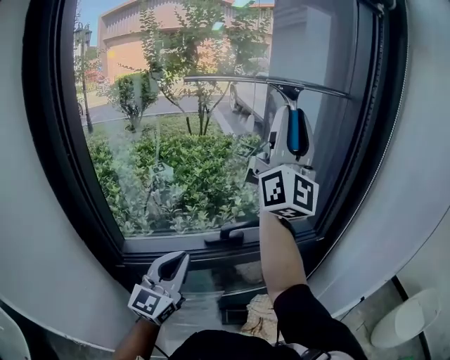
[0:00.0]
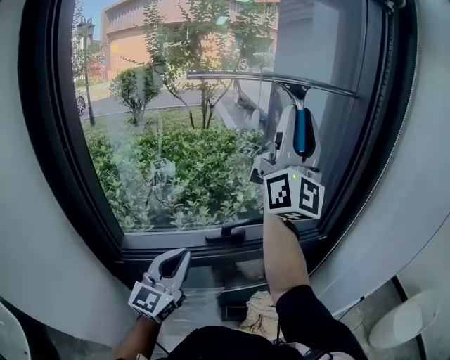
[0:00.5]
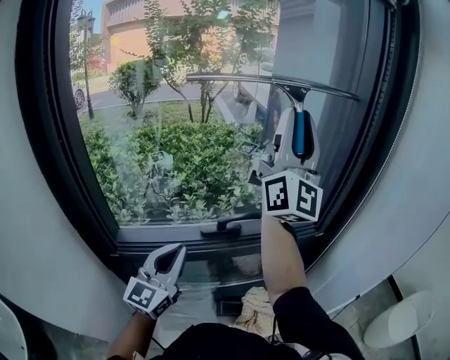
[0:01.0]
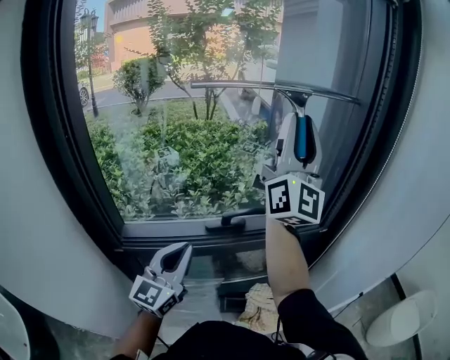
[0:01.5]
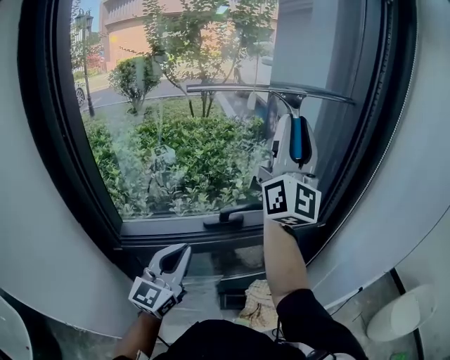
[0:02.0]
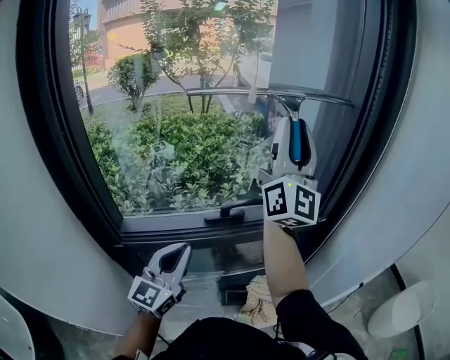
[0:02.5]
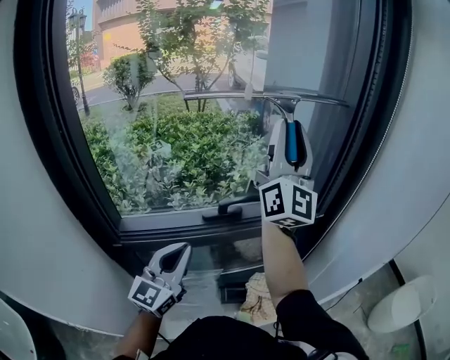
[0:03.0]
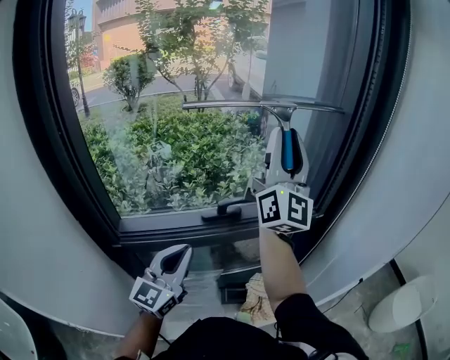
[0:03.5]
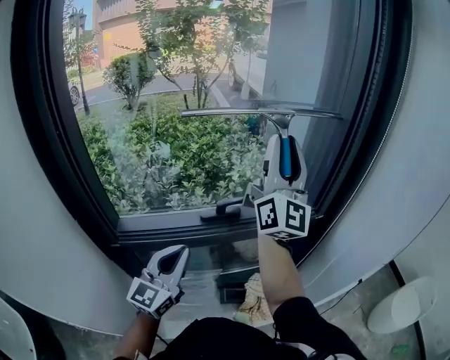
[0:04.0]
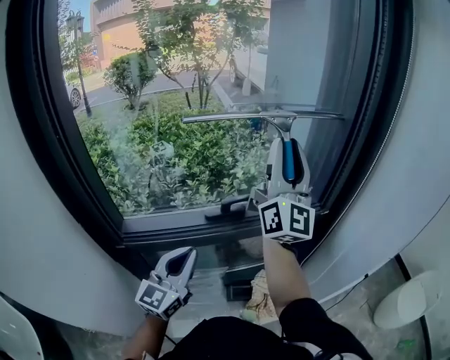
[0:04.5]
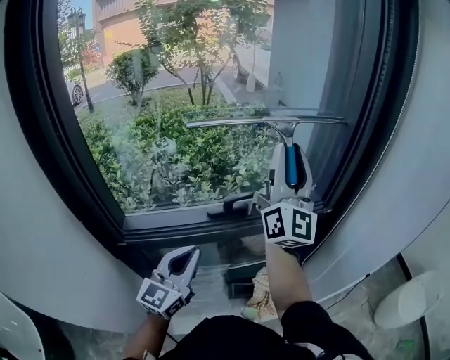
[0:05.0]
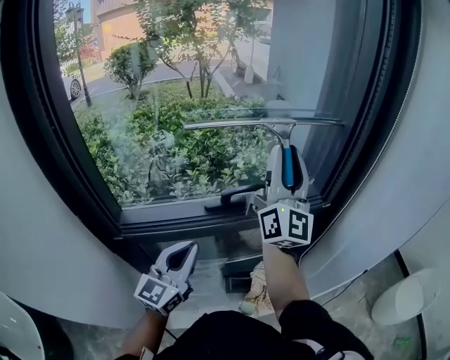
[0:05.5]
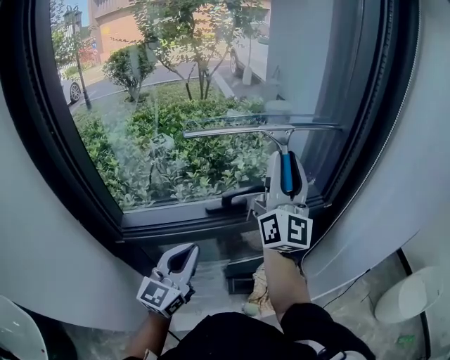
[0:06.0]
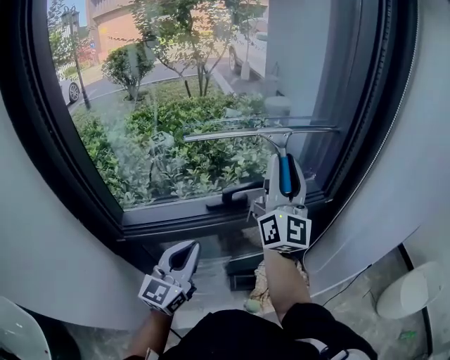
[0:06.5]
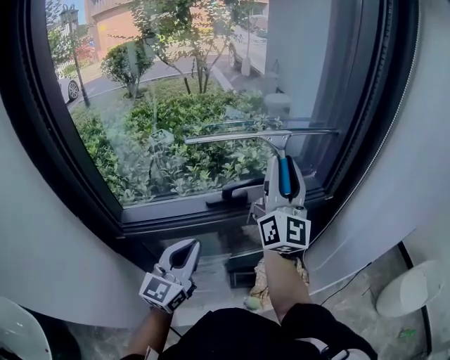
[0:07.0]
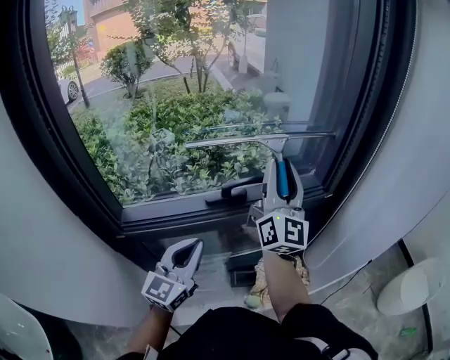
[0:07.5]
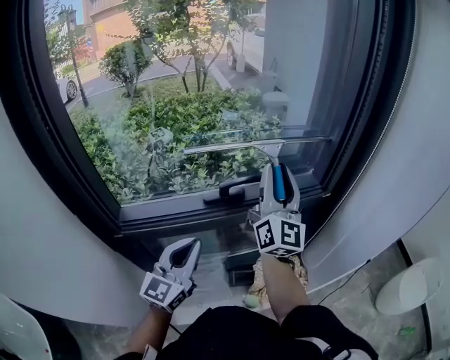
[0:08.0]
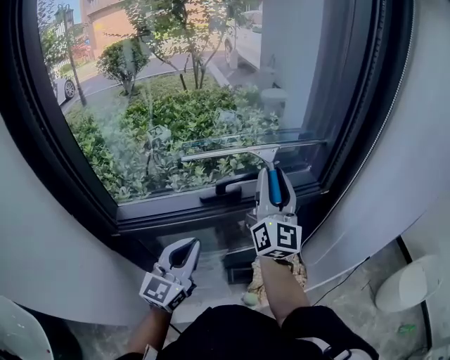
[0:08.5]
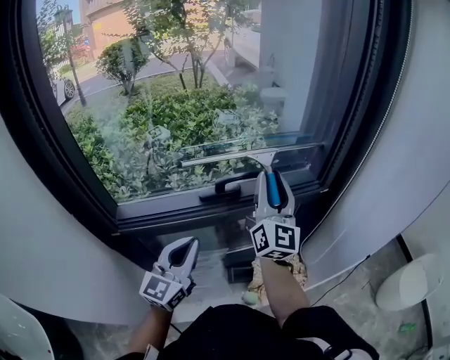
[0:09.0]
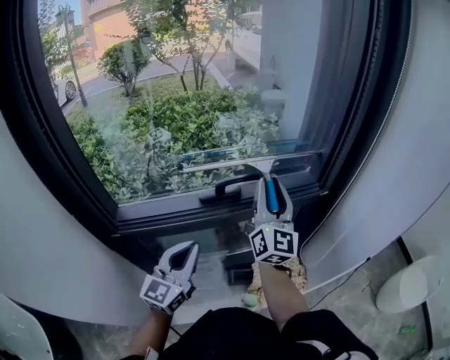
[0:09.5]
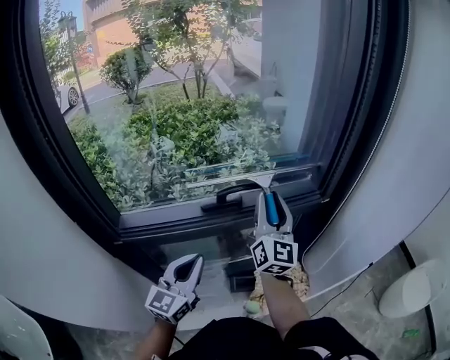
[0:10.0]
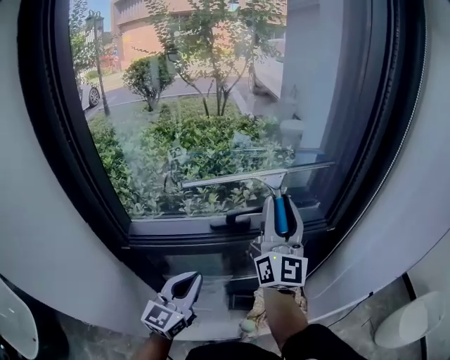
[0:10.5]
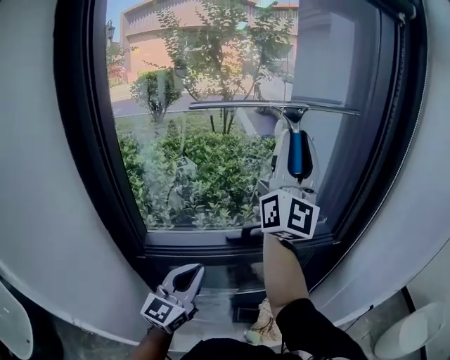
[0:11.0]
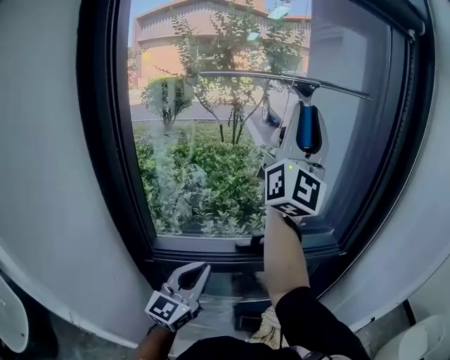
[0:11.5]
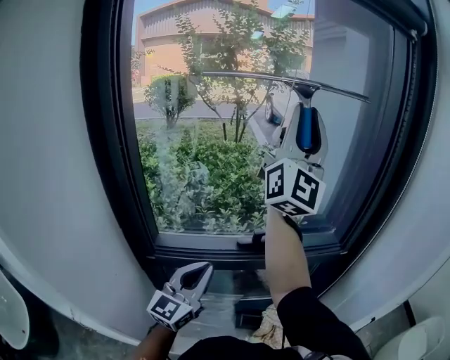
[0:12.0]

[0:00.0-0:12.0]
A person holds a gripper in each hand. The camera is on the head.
0:00.0 to 0:02.0: The right gripper travels downward by roughly 5 cm.
0:02.0 to 0:04.0: The right gripper goes about 5 cm downward.
0:04.0 to 0:06.0: The right gripper is displaced downward by about 5 cm.
0:06.0 to 0:08.0: The right gripper moves downward, roughly 5 cm.
0:08.0 to 0:10.0: The right gripper travels downward by some 10 cm.
0:10.0 to 0:12.0: The right gripper travels upward by approximately 35 cm, and tips its fingers upward by about 40 degrees, while the left gripper shifts approximately 10 cm upward and to the left.

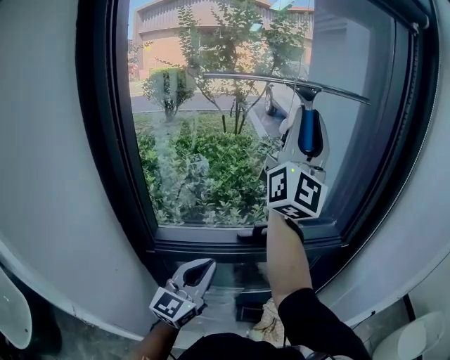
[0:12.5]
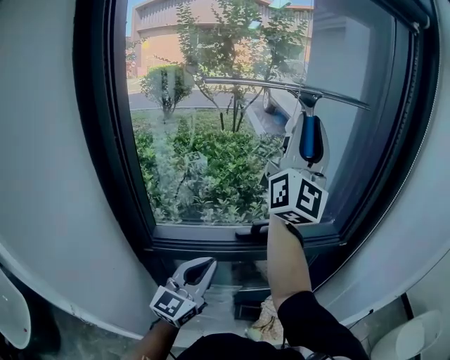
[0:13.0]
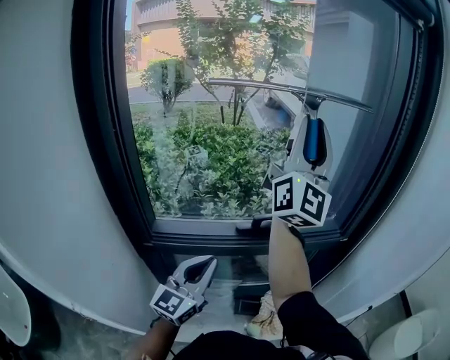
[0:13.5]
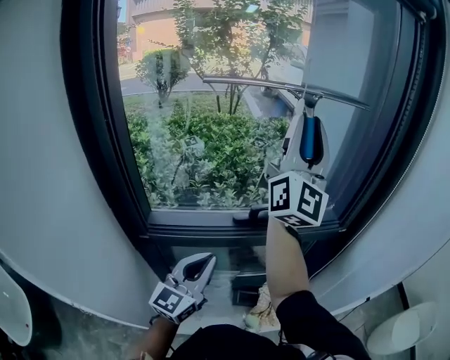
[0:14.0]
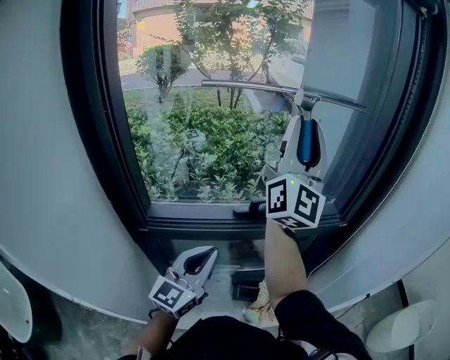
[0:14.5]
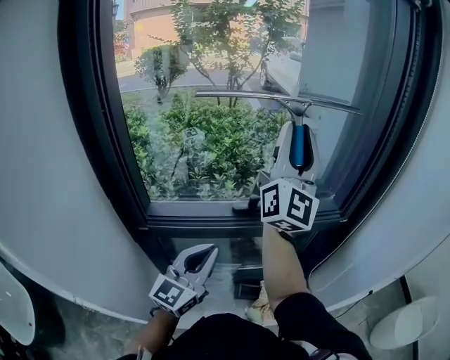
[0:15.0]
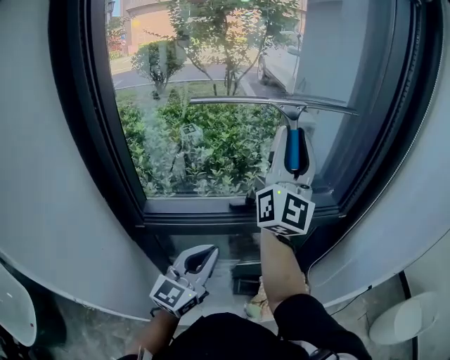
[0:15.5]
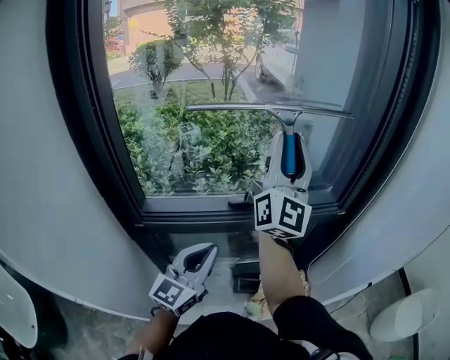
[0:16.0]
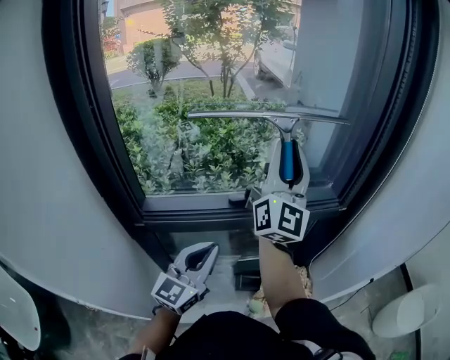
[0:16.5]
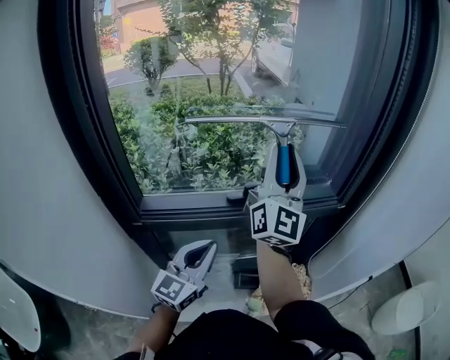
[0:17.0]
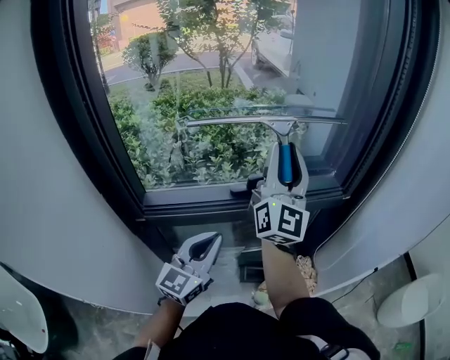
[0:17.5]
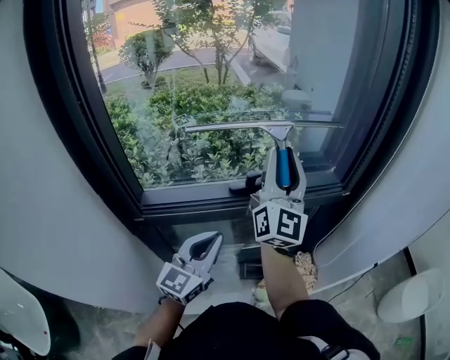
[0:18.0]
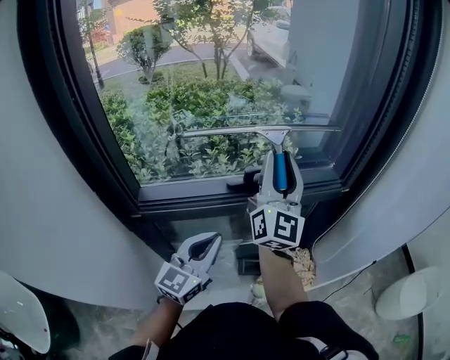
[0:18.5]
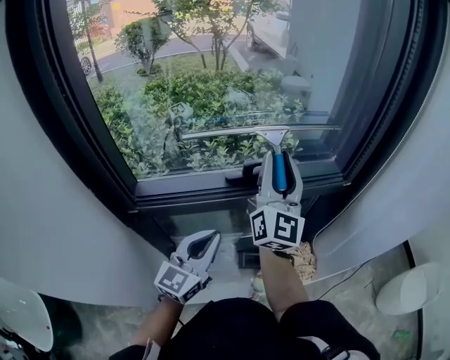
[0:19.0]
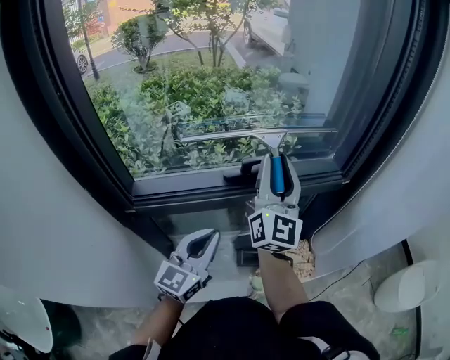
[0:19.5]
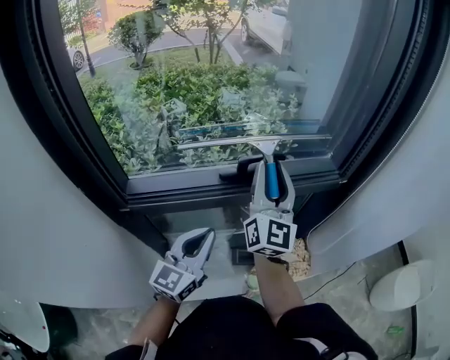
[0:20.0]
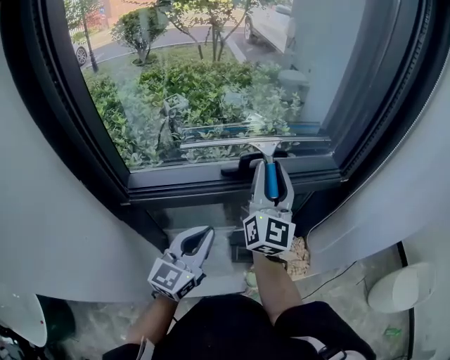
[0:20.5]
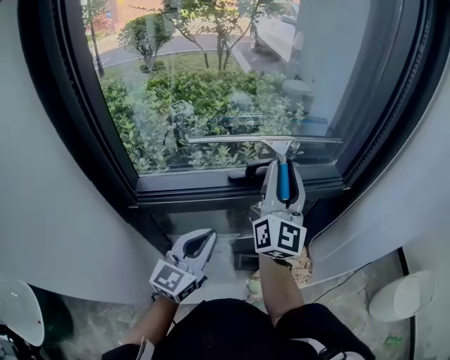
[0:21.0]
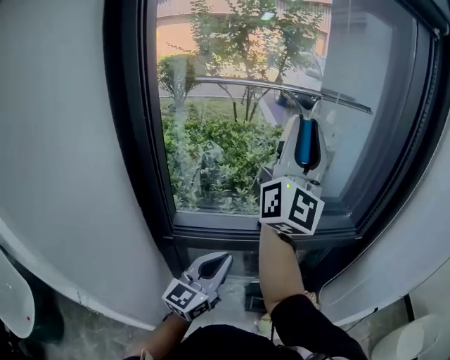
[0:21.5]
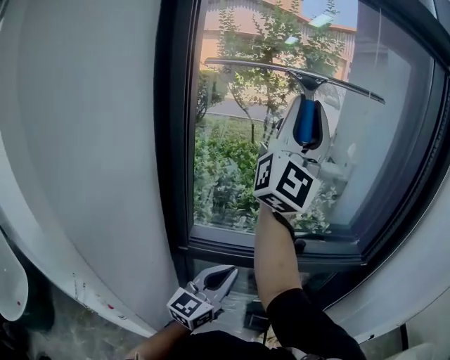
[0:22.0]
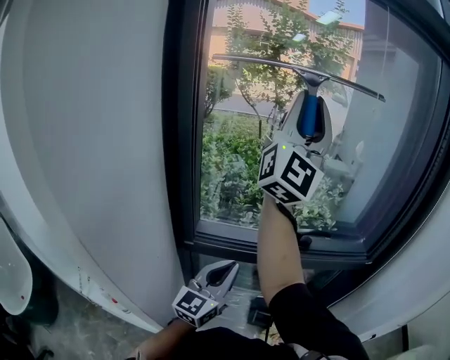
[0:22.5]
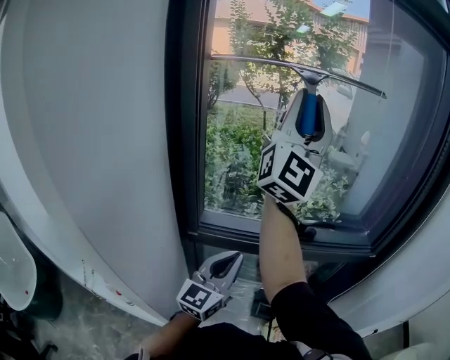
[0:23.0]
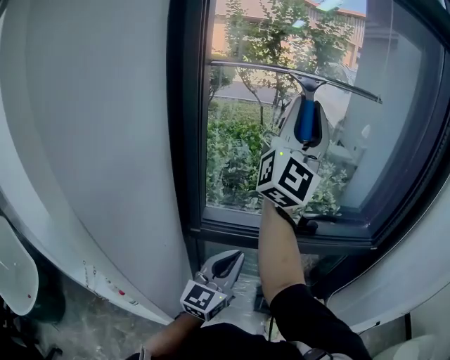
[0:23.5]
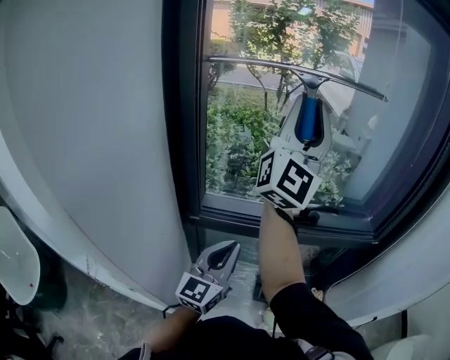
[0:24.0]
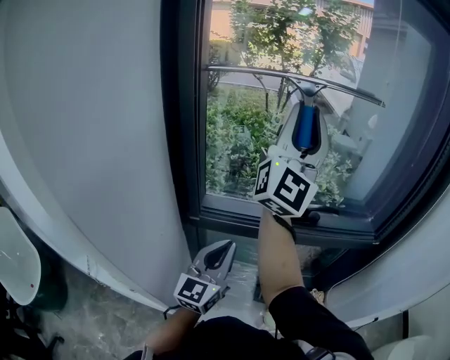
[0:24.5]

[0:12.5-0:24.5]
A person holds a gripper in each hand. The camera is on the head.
0:12.5 to 0:14.5: The right gripper is displaced downward by approximately 10 cm.
0:14.5 to 0:16.5: The right gripper shifts roughly 10 cm downward.
0:16.5 to 0:18.5: The right gripper shifts about 10 cm downward.
0:18.5 to 0:20.5: The right gripper travels downward by about 10 cm.
0:20.5 to 0:22.5: The right gripper shifts roughly 40 cm upward and to the left, and points its fingers approximately 40 degrees further upward. Meanwhile the left gripper travels to the left and upward by about 10 cm.
0:22.5 to 0:24.5: The right gripper moves downward, approximately 10 cm.

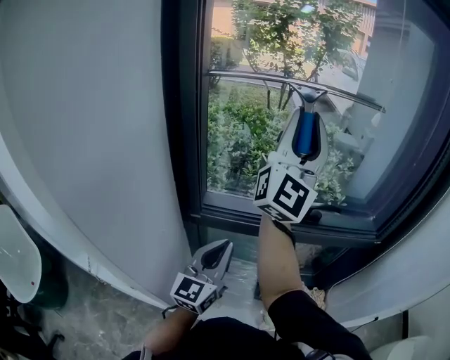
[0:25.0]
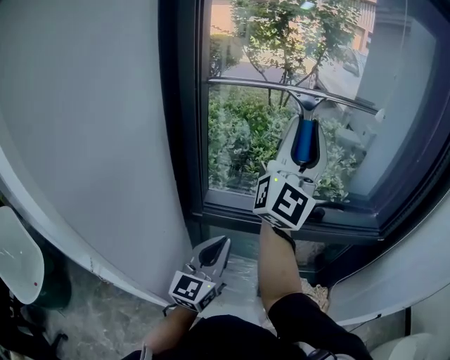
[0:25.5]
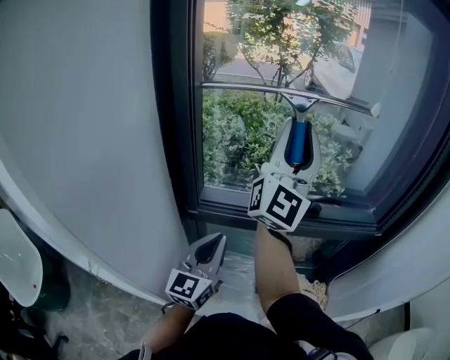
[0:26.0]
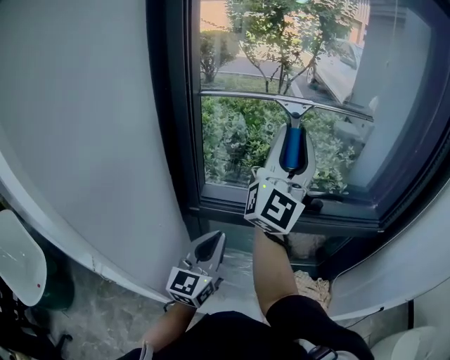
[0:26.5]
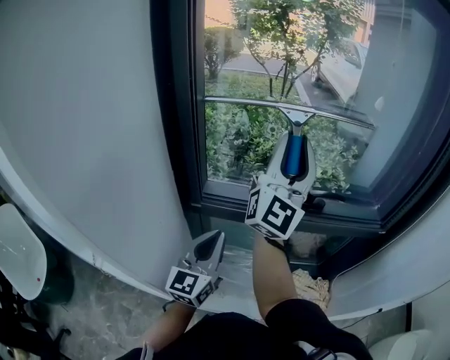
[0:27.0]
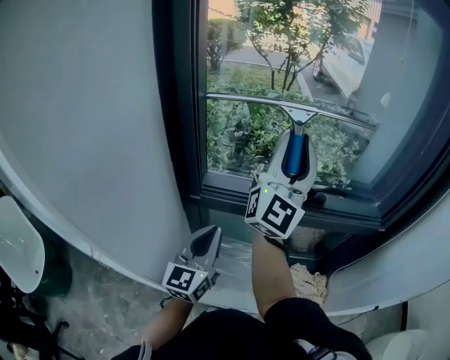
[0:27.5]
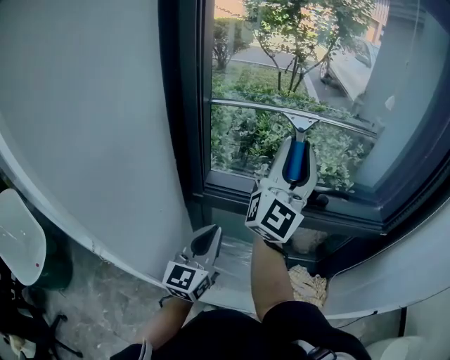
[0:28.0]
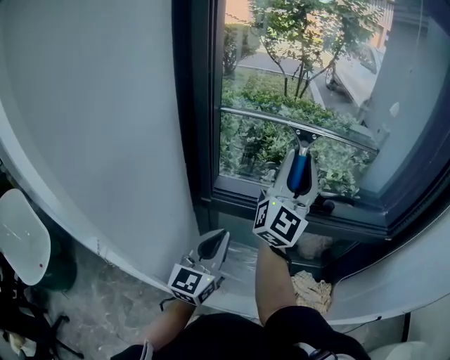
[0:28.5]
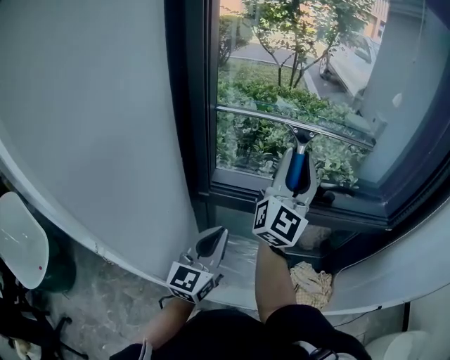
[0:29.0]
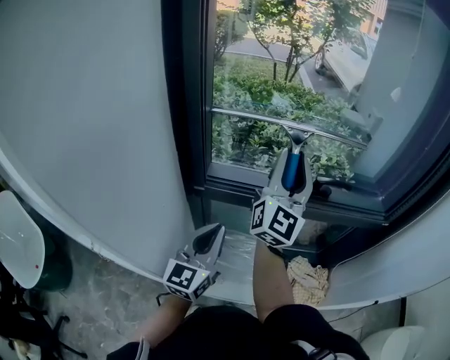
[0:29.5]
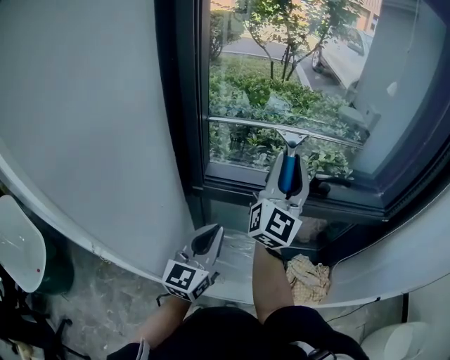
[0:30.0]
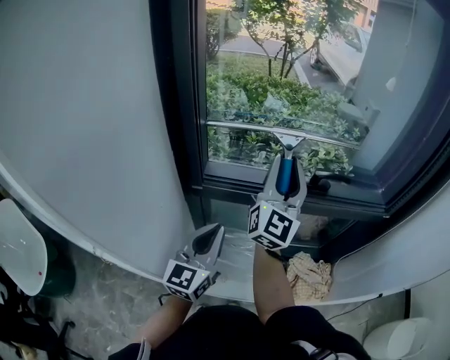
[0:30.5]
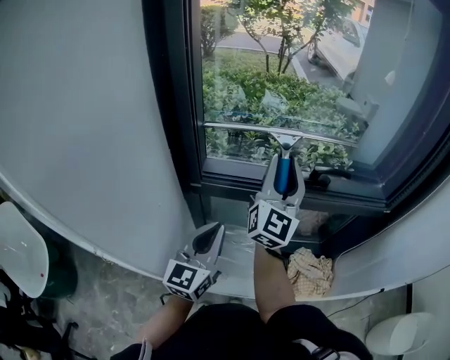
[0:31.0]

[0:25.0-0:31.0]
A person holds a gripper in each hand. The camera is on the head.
0:25.0 to 0:27.0: The right gripper shifts about 10 cm downward.
0:27.0 to 0:29.0: The right gripper travels downward by roughly 10 cm.
0:29.0 to 0:31.0: The right gripper travels downward by roughly 5 cm.
